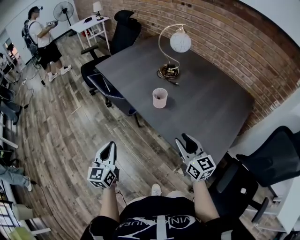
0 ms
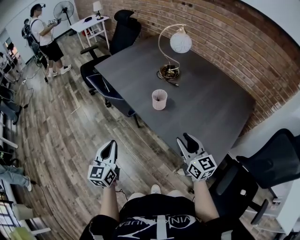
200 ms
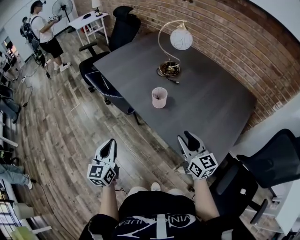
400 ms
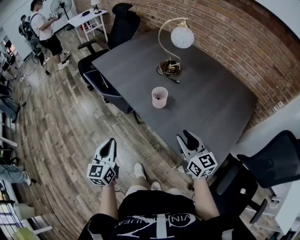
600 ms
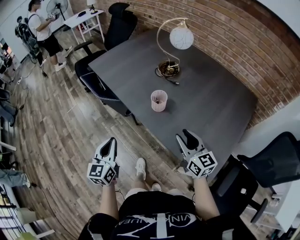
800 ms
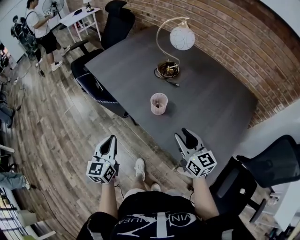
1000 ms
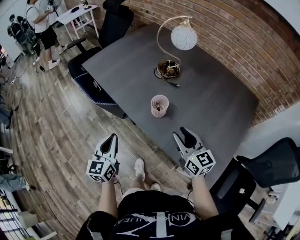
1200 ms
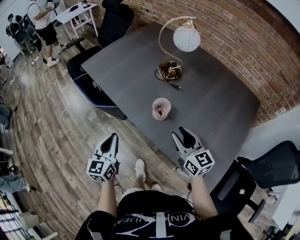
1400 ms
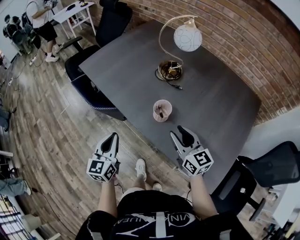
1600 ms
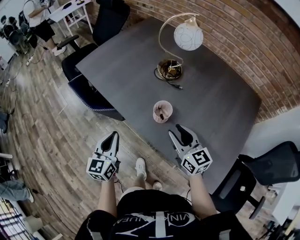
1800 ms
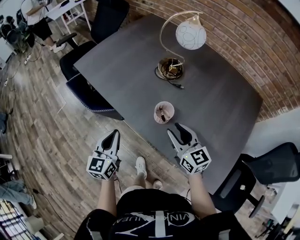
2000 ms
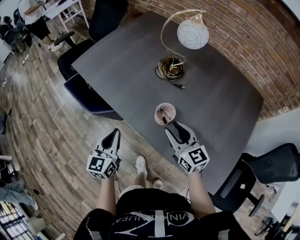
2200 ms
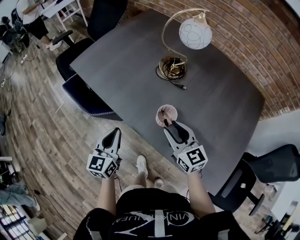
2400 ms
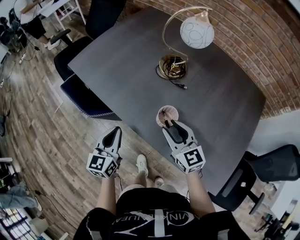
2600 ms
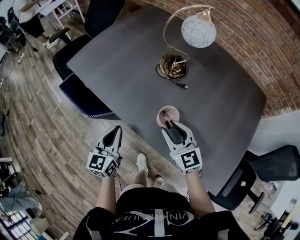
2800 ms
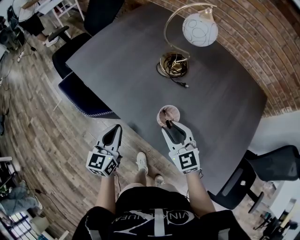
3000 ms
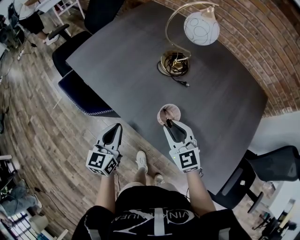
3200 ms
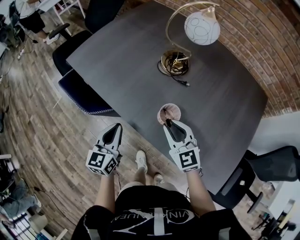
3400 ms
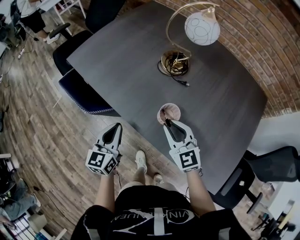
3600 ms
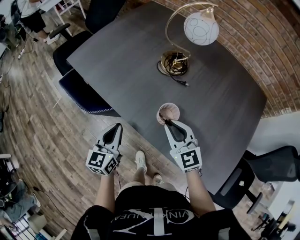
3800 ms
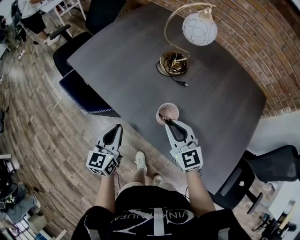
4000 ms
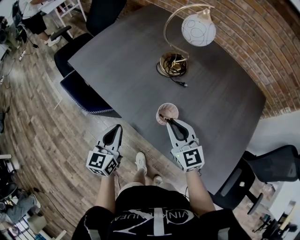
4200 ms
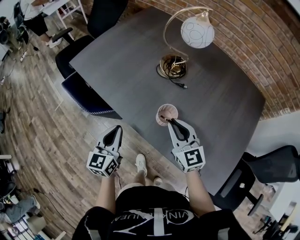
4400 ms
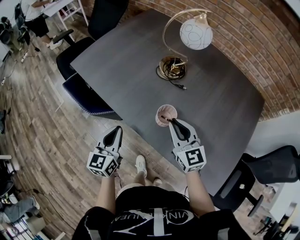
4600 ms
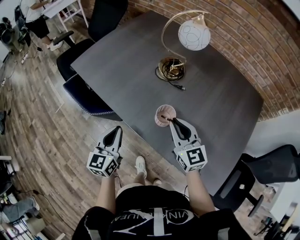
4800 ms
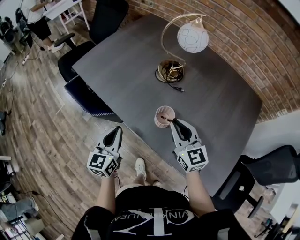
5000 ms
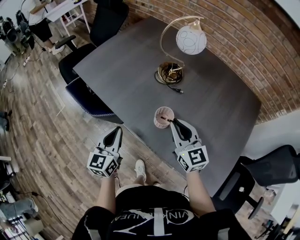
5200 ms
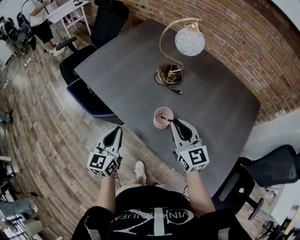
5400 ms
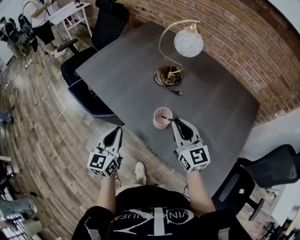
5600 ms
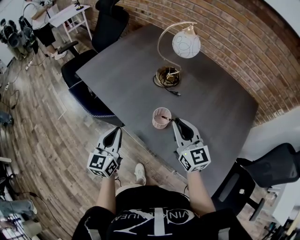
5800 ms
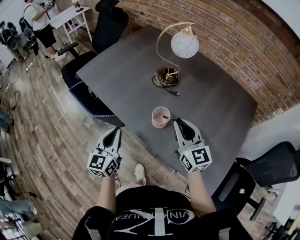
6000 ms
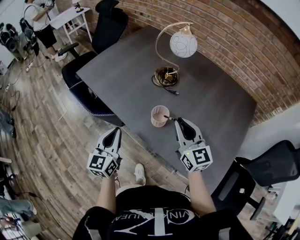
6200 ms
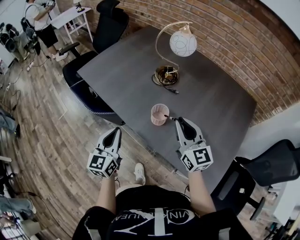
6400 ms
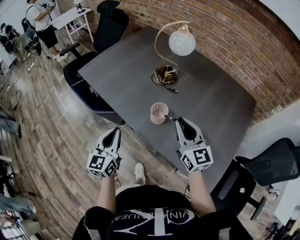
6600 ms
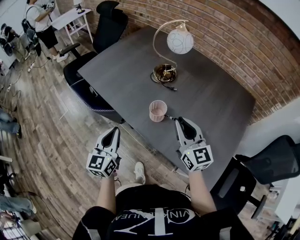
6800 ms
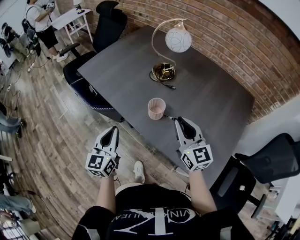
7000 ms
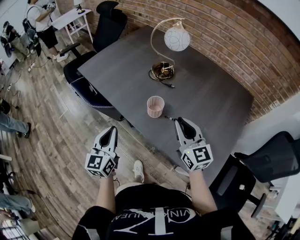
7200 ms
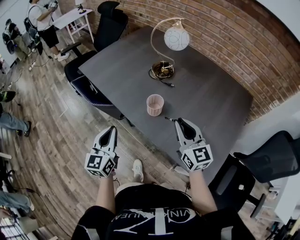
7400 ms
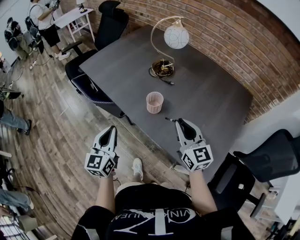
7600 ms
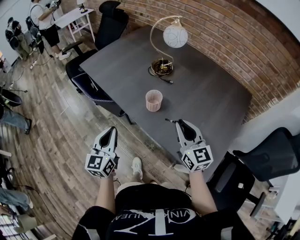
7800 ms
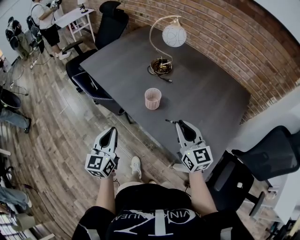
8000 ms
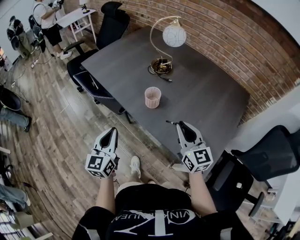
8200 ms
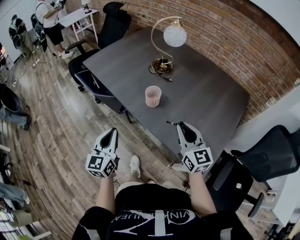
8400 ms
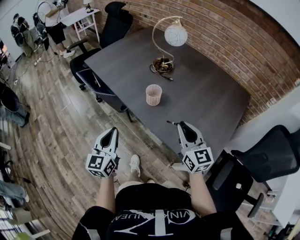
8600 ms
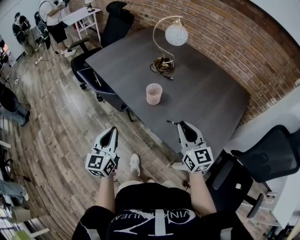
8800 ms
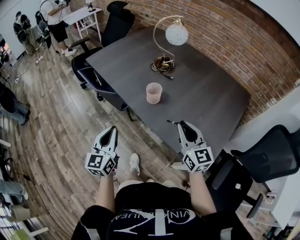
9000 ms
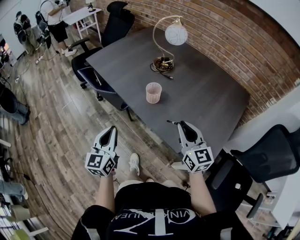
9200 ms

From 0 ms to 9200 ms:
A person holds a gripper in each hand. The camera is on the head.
From 0 ms to 1600 ms: Both grippers move forward, roughly 20 cm.
From 1600 ms to 3000 ms: The right gripper heads forward and to the left, covering some 10 cm, and rotates some 20 degrees. The left gripper goes about 10 cm forward.
From 3000 ms to 4600 ms: The grippers make only small movements.
From 4600 ms to 6200 ms: Both grippers travel together upward, roughly 5 cm.
From 6200 ms to 7600 ms: Both grippers move backward, approximately 10 cm.
From 7600 ms to 9200 ms: The grippers both shift backward by approximately 10 cm.

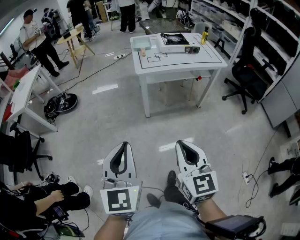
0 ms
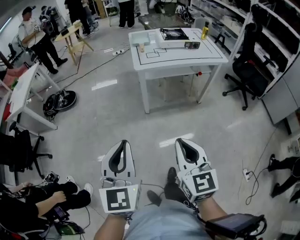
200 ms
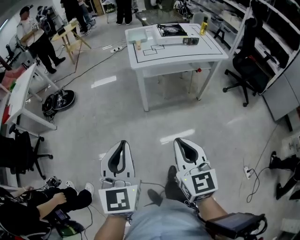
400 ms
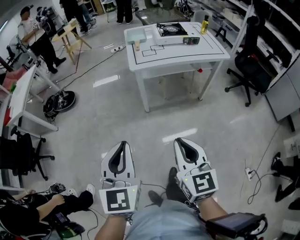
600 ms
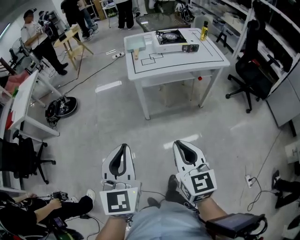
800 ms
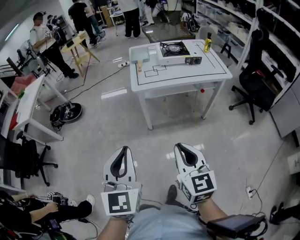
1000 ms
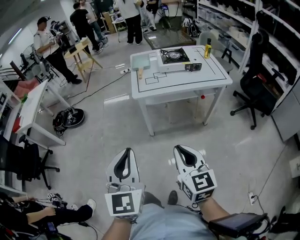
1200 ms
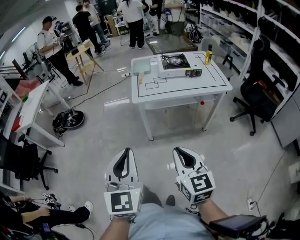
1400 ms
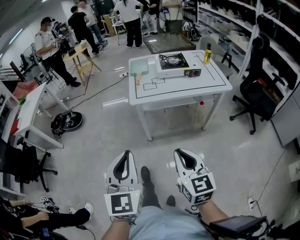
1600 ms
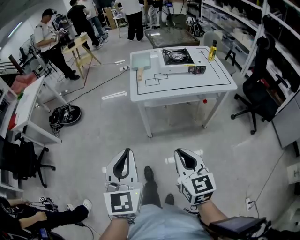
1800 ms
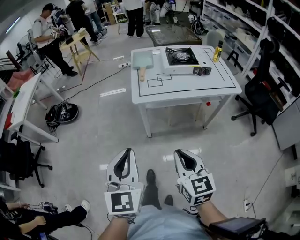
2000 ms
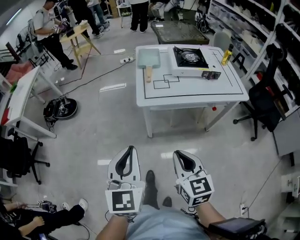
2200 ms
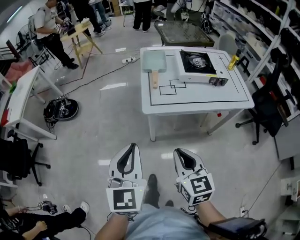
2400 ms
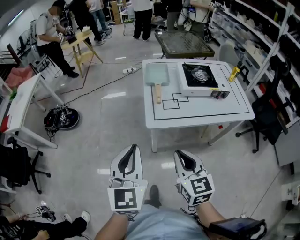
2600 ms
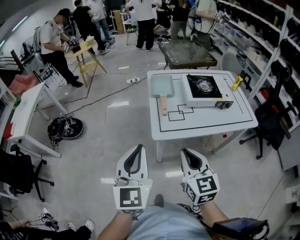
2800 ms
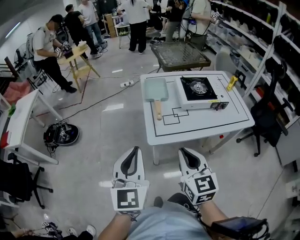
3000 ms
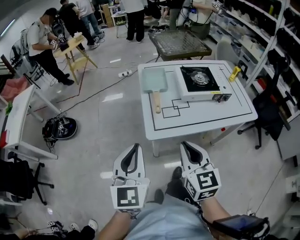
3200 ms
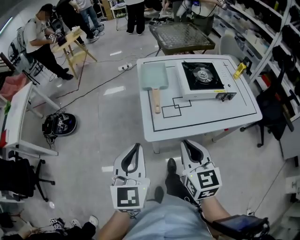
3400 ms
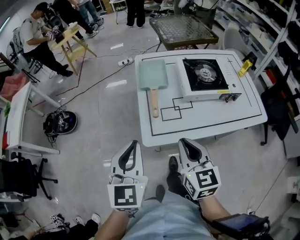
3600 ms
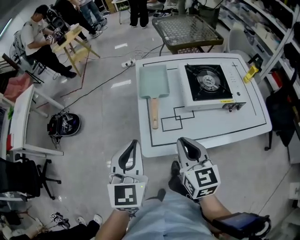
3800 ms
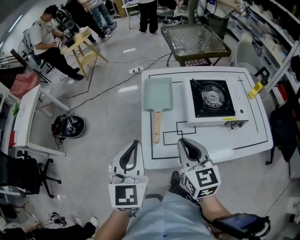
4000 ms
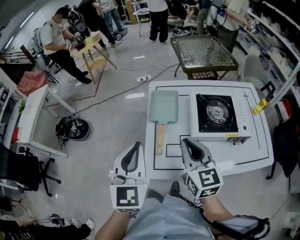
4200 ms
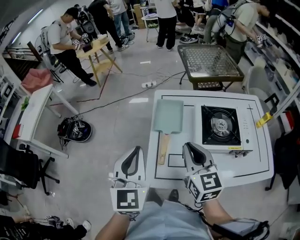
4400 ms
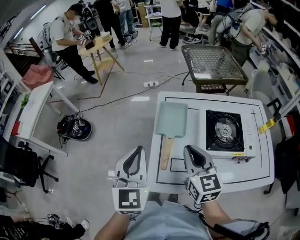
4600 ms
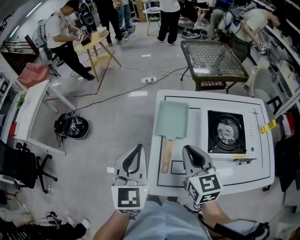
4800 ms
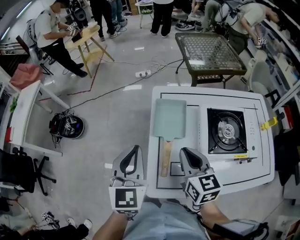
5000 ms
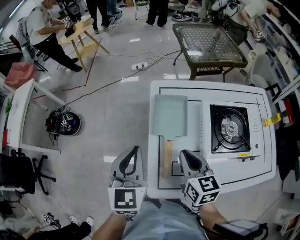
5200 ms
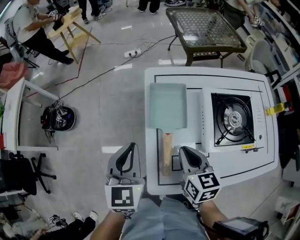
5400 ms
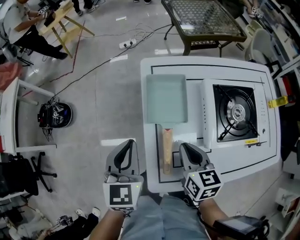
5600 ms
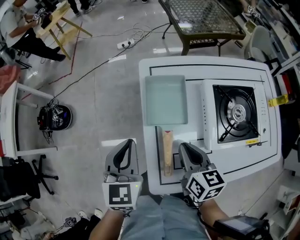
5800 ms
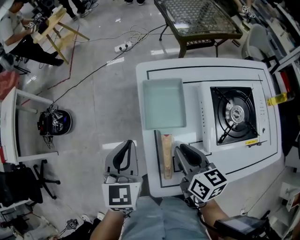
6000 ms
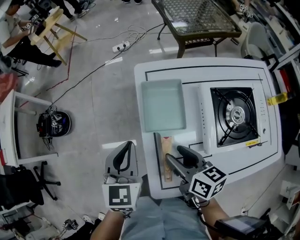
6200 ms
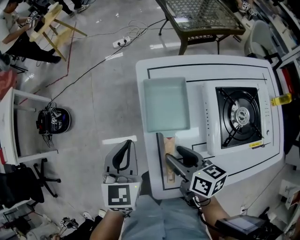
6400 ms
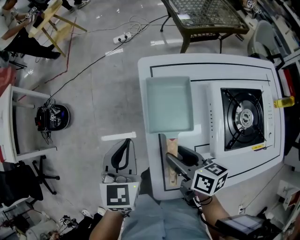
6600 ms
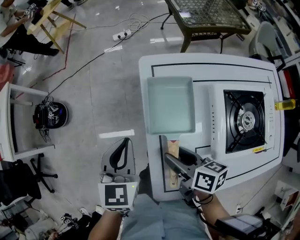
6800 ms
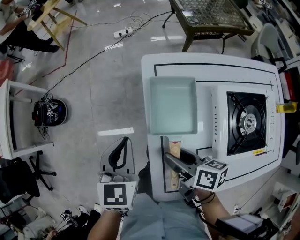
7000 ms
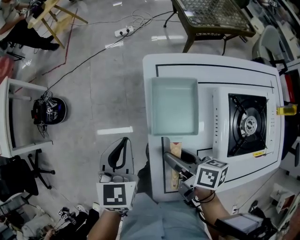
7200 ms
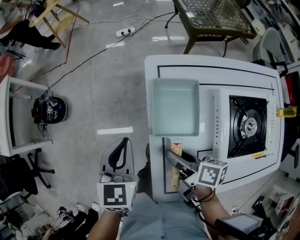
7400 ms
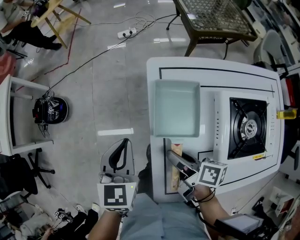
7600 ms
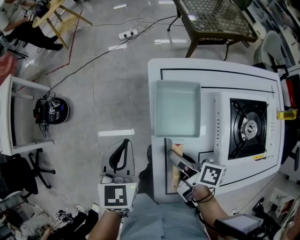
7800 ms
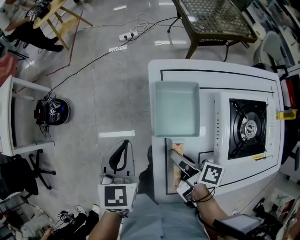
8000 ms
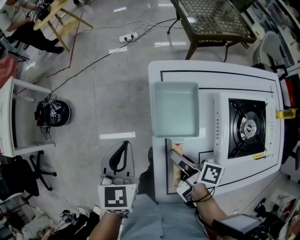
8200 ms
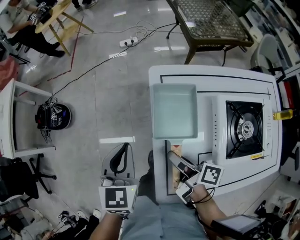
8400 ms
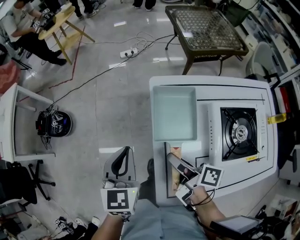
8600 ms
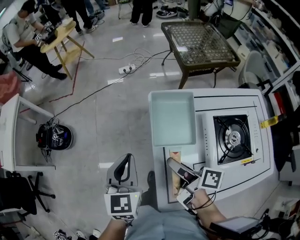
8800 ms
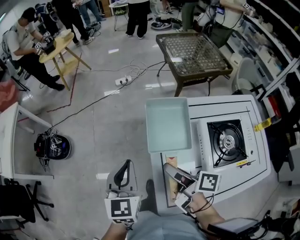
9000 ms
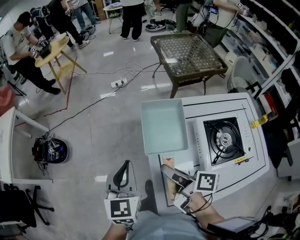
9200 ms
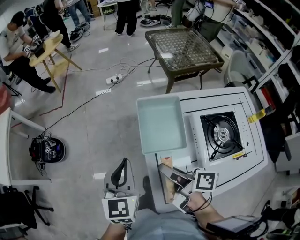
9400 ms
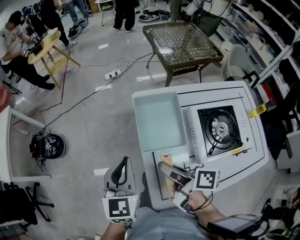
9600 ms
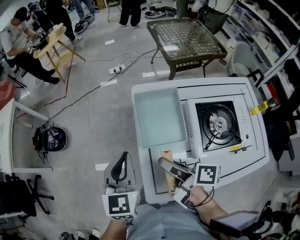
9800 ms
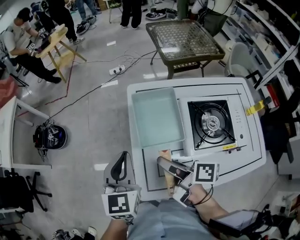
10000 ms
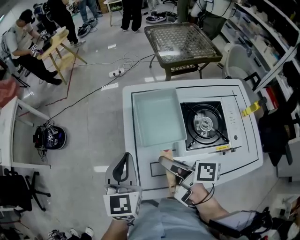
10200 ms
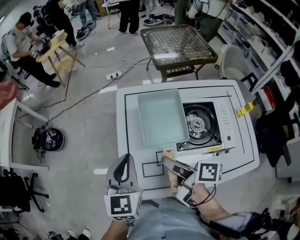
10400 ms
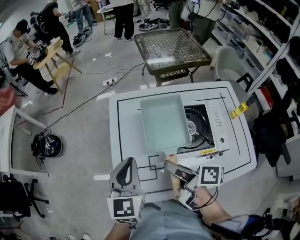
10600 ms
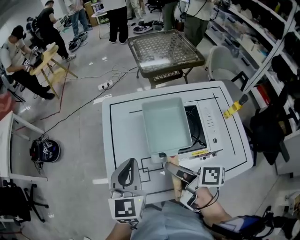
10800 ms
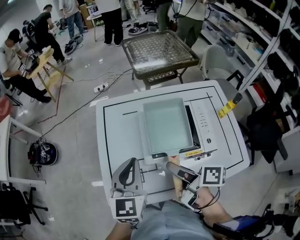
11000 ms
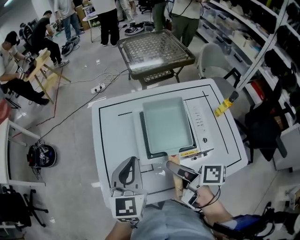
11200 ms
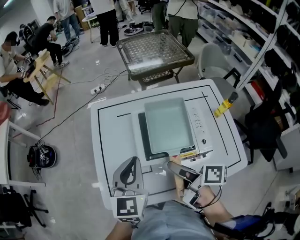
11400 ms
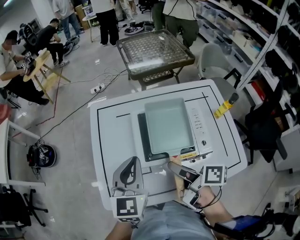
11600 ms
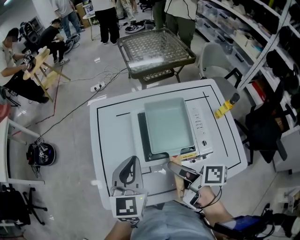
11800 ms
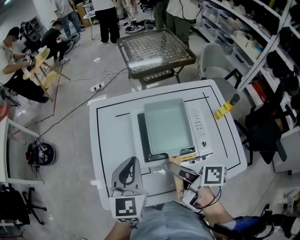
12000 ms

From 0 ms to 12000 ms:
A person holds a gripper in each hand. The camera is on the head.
From 0 ms to 1600 ms: Both grippers travel together forward and to the right, approximately 20 cm.
From 1600 ms to 3000 ms: The grippers both shift forward by about 35 cm.
From 3000 ms to 4400 ms: The grippers both shift forward by approximately 30 cm.
From 4400 ms to 6000 ms: The left gripper goes roughly 25 cm forward and downward, and turns by about 20 degrees. The right gripper moves downward and forward, some 20 cm, and swivels about 30 degrees.
From 6000 ms to 7600 ms: The right gripper shifts about 10 cm downward and forward, turns by some 40 degrees, and opens up. Meanwhile the left gripper travels forward by roughly 5 cm.
From 7600 ms to 9000 ms: The two grippers go about 15 cm upward.
From 9000 ms to 10400 ms: Both grippers move to the right and backward, about 20 cm.
From 10400 ms to 12000 ms: Both grippers move to the right, approximately 15 cm.

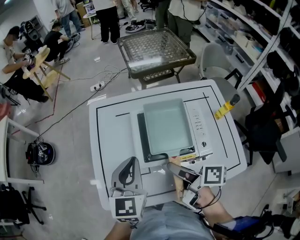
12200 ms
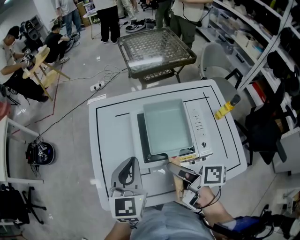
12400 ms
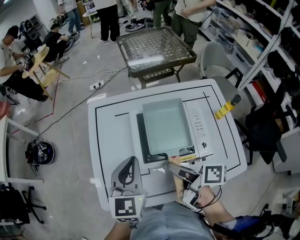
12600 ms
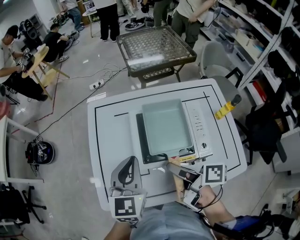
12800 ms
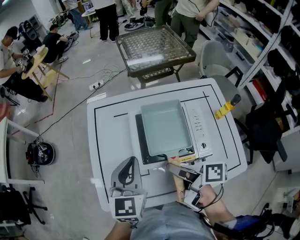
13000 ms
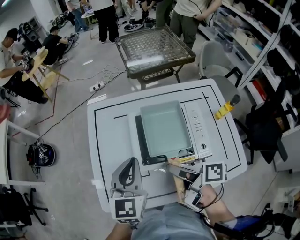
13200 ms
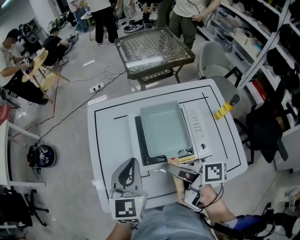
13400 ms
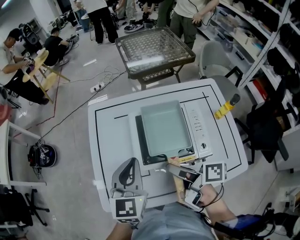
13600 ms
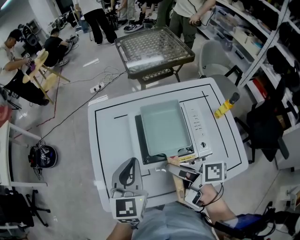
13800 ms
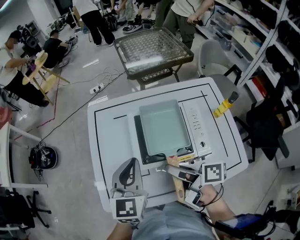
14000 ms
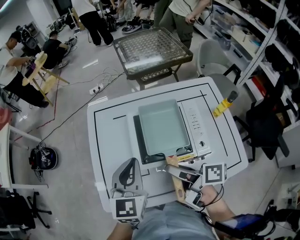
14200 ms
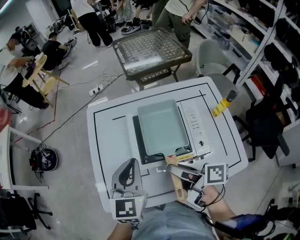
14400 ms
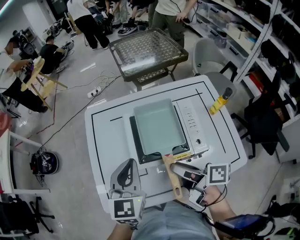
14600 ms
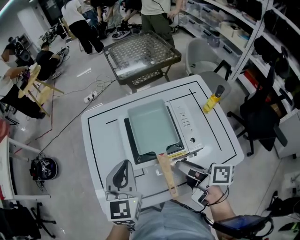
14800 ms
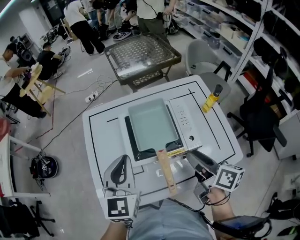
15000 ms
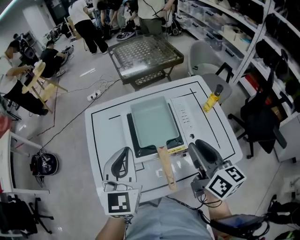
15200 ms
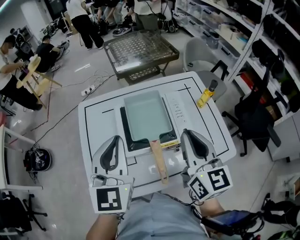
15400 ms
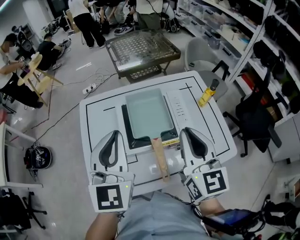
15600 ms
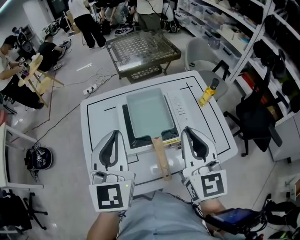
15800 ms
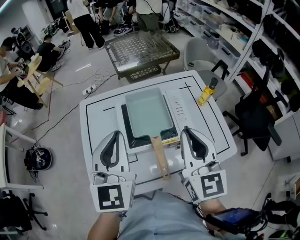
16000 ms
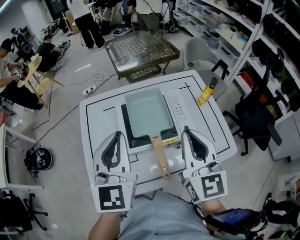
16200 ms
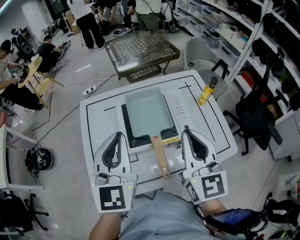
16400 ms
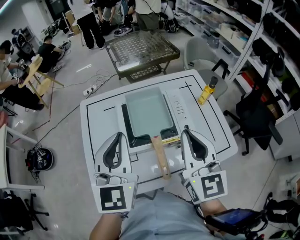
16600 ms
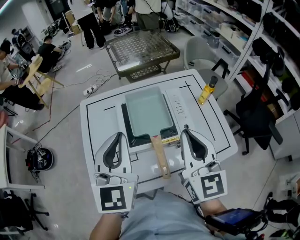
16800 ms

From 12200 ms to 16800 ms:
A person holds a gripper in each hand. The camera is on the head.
From 12200 ms to 13800 ms: The grippers make only small movements.
From 13800 ms to 15200 ms: The right gripper moves to the right, upward and backward, roughly 15 cm, and turns by approximately 60 degrees, while the left gripper travels upward by roughly 5 cm.
From 15200 ms to 16800 ms: The right gripper changes place by some 5 cm, rotates roughly 30 degrees, and closes.
